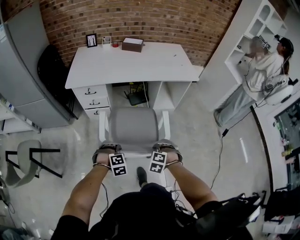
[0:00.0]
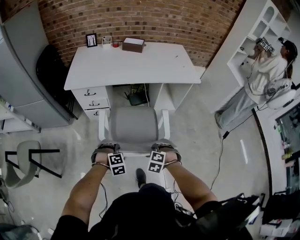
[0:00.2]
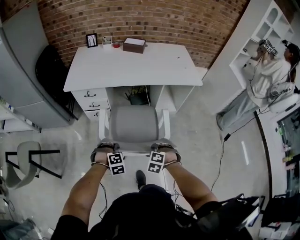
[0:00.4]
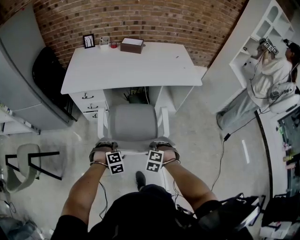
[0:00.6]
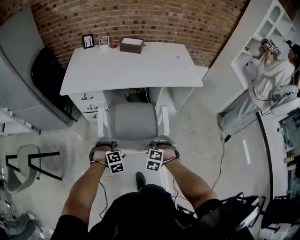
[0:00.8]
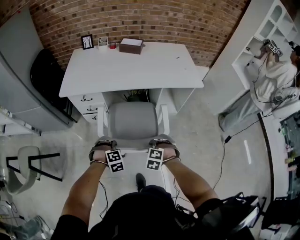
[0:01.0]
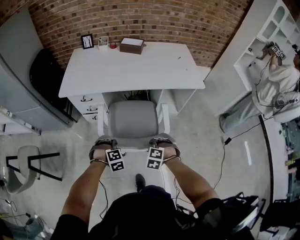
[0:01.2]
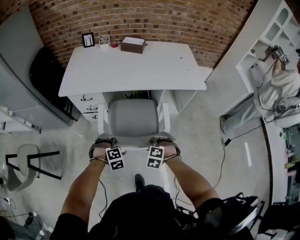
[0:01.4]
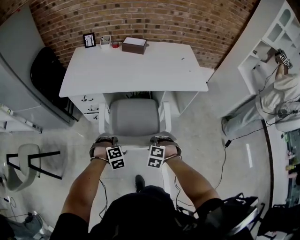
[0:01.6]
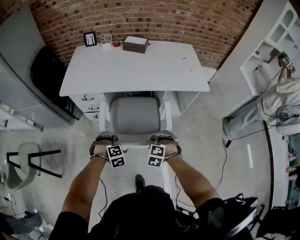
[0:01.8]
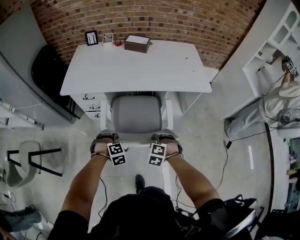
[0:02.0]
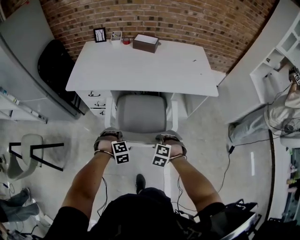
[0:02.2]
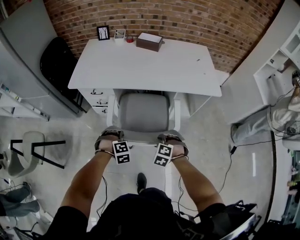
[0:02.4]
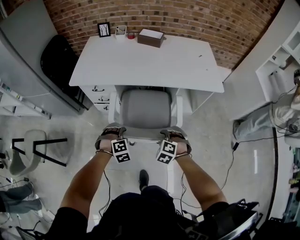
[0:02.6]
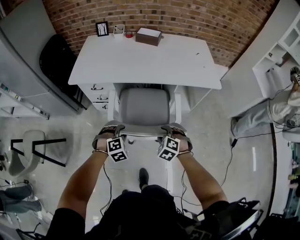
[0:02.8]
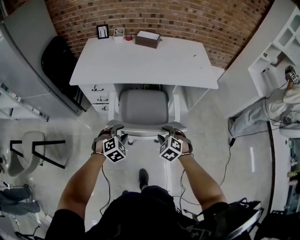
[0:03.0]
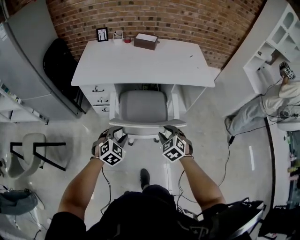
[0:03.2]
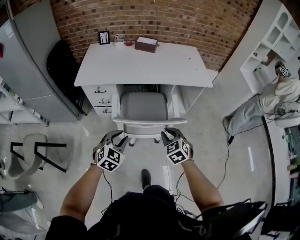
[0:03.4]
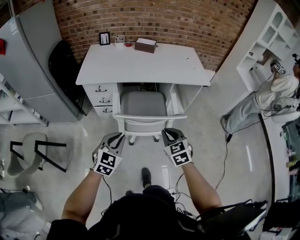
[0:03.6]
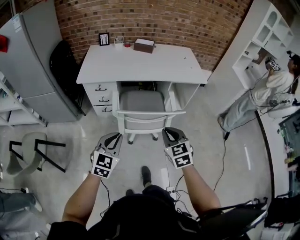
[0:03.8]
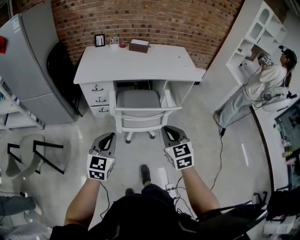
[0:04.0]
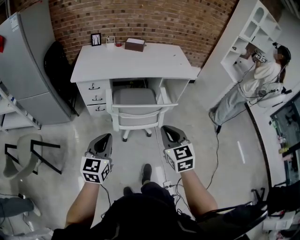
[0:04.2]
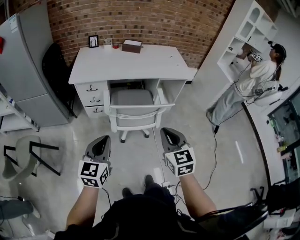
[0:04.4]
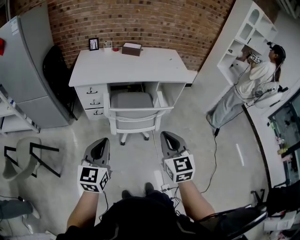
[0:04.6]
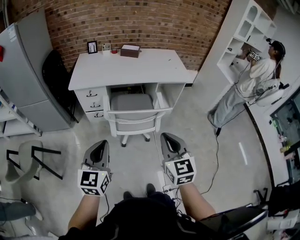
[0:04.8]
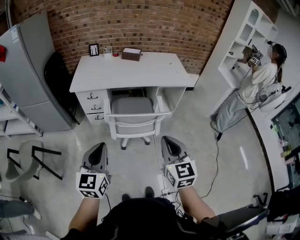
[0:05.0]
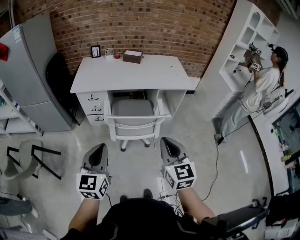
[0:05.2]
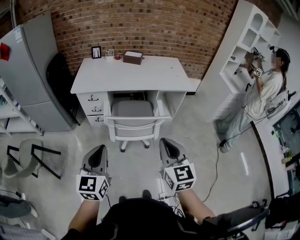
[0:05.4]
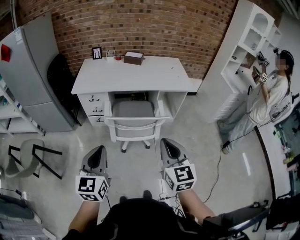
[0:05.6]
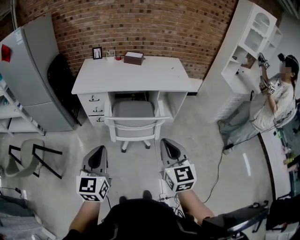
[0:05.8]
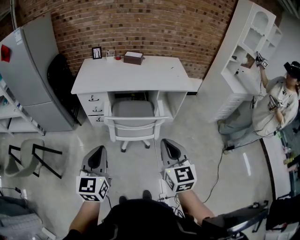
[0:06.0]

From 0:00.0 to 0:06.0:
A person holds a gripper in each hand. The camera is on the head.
From 0:00.0 to 0:01.6: The two grippers go approximately 20 cm forward.
From 0:01.6 to 0:03.0: The two grippers go roughly 5 cm upward. The left gripper changes its angle by about 30 degrees, and opens up, while the right gripper turns by roughly 20 degrees.
From 0:03.0 to 0:04.4: Both grippers move backward and upward, approximately 35 cm. The right gripper points its fingers some 40 degrees further upward, and closes its fingers. Meanwhile the left gripper points its fingers about 40 degrees further upward, and closes.
From 0:04.4 to 0:06.0: The right gripper heads to the right and upward, covering some 10 cm, while the left gripper moves upward and to the right, some 10 cm.

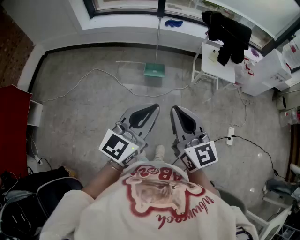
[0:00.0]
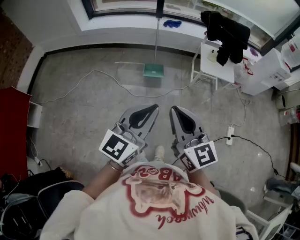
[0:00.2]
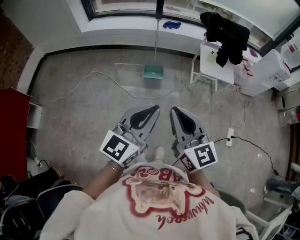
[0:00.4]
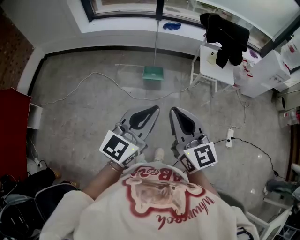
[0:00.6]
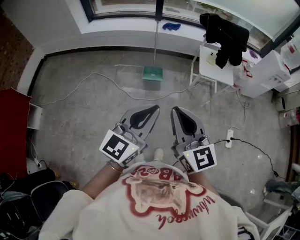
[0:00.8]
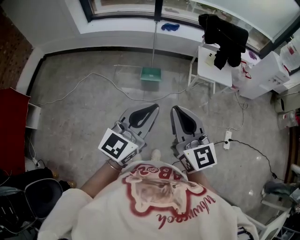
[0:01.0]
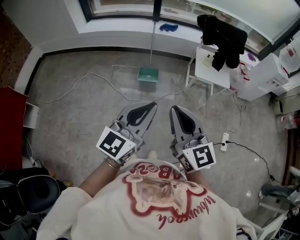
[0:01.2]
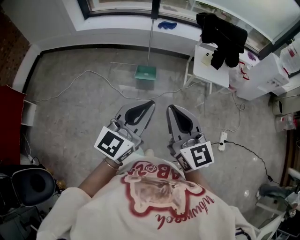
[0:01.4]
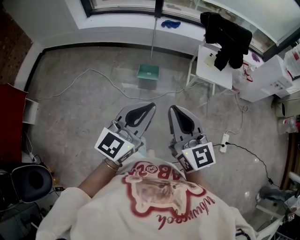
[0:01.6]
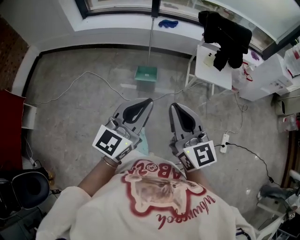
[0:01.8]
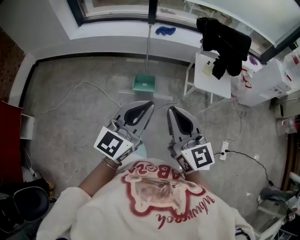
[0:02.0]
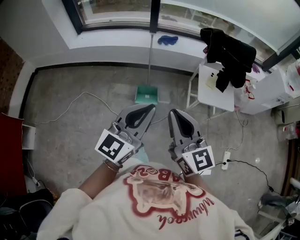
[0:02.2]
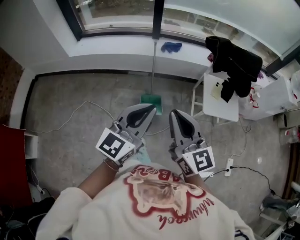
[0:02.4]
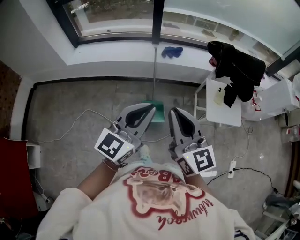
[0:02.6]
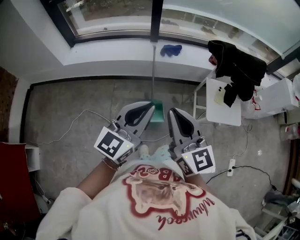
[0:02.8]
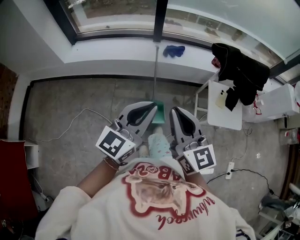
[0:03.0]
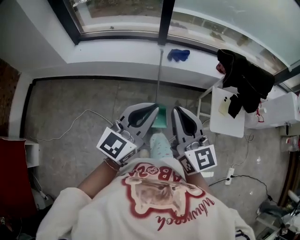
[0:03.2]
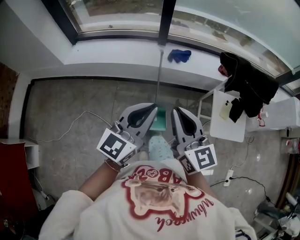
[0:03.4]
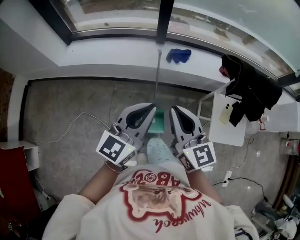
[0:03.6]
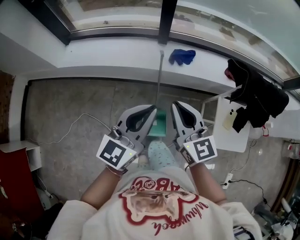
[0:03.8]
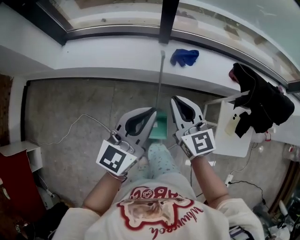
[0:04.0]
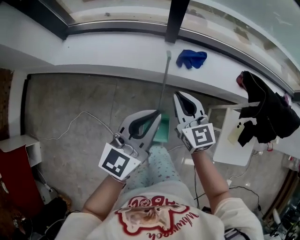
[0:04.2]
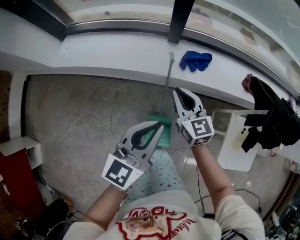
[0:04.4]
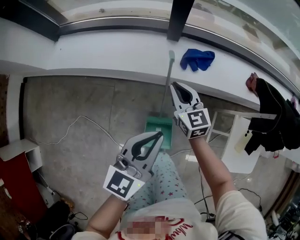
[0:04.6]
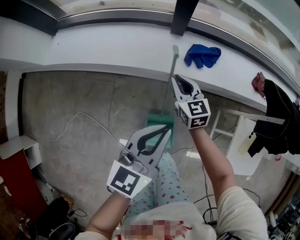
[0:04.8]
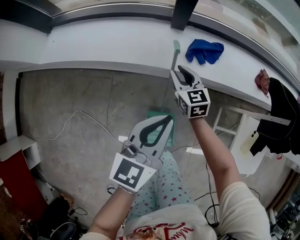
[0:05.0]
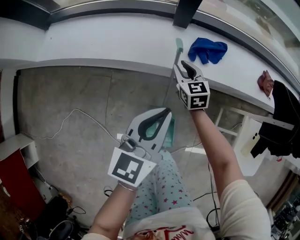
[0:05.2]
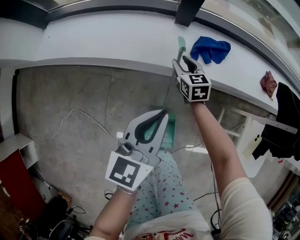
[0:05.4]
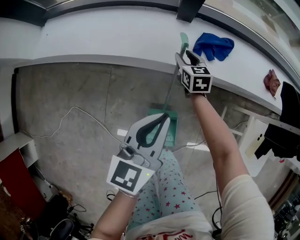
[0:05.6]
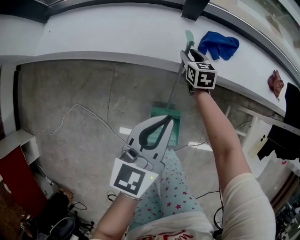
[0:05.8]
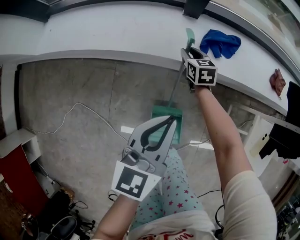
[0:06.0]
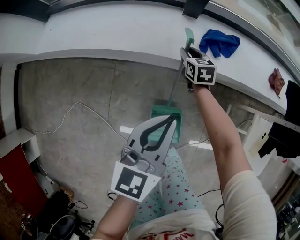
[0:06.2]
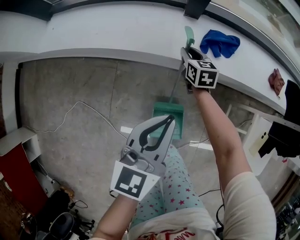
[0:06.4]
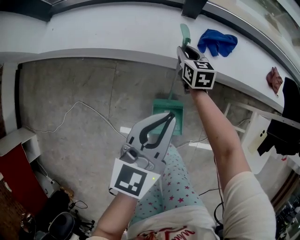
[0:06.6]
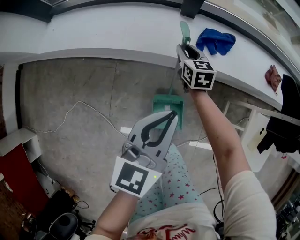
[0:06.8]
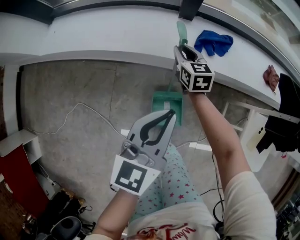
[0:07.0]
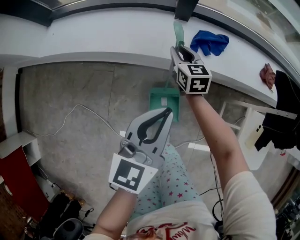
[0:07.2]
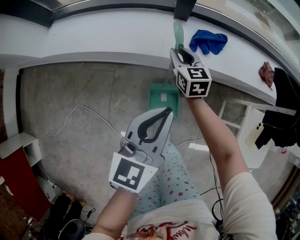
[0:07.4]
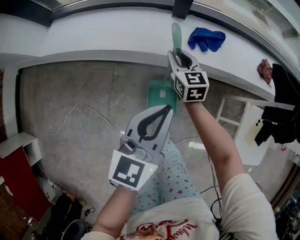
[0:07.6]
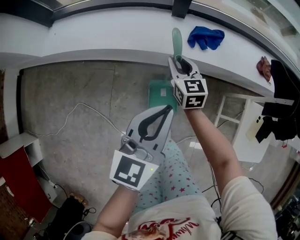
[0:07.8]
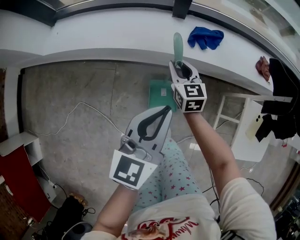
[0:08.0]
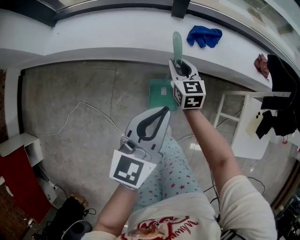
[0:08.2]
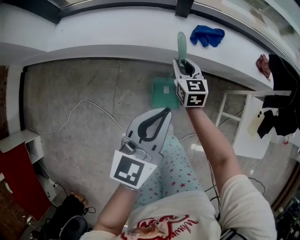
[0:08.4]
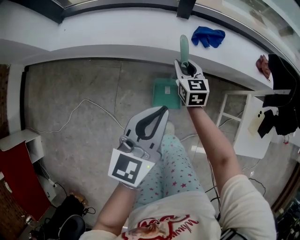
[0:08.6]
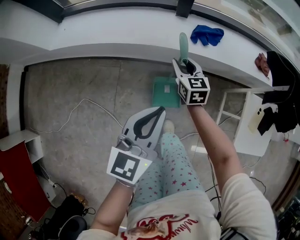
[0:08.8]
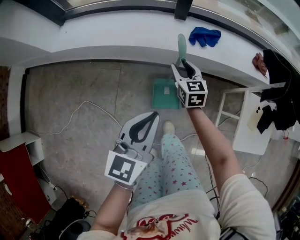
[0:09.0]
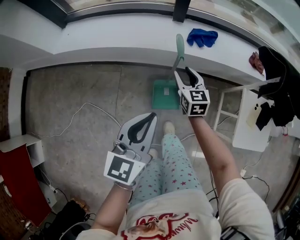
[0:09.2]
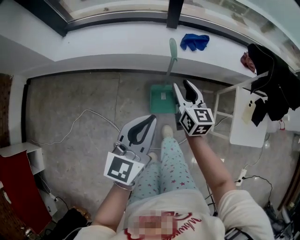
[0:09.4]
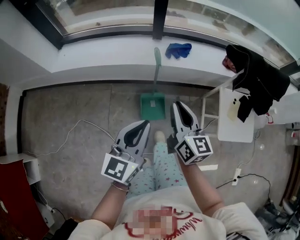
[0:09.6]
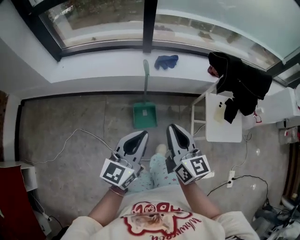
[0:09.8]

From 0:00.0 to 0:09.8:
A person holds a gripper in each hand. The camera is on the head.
From 0:00.0 to 0:01.4: The right gripper shifts some 5 cm to the right. The left gripper travels to the right and forward by some 10 cm.
From 0:01.4 to 0:02.8: Both grippers are carried forward, approximately 50 cm.
From 0:02.8 to 0:04.2: The left gripper is displaced forward by approximately 35 cm. The right gripper shifts roughly 50 cm forward and downward.
From 0:04.2 to 0:05.6: The left gripper moves downward, roughly 20 cm; the right gripper is displaced downward and forward by about 40 cm, changes its angle by approximately 30 degrees, and opens.
From 0:05.6 to 0:07.0: The right gripper goes roughly 10 cm upward, while the left gripper changes place by about 5 cm.
From 0:07.0 to 0:08.4: The left gripper shifts some 10 cm backward; the right gripper shifts roughly 15 cm backward and upward.
From 0:08.4 to 0:09.8: The right gripper shifts about 50 cm backward and upward, and rotates about 20 degrees. The left gripper is displaced backward and upward by about 25 cm.

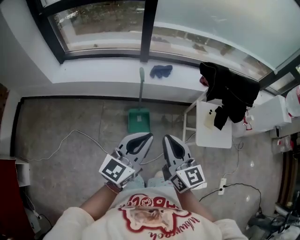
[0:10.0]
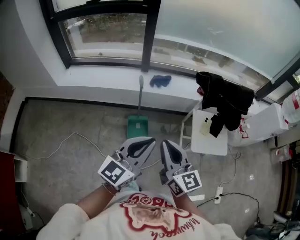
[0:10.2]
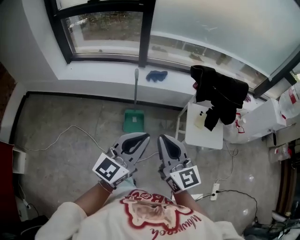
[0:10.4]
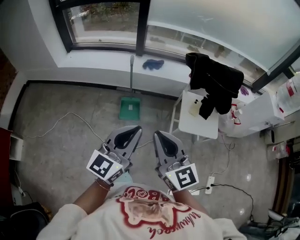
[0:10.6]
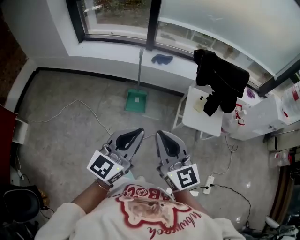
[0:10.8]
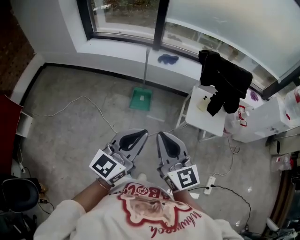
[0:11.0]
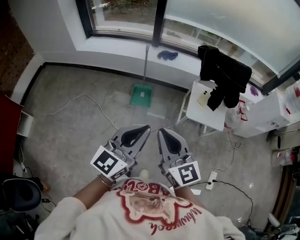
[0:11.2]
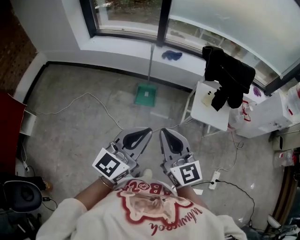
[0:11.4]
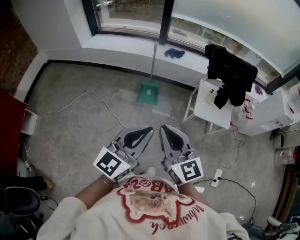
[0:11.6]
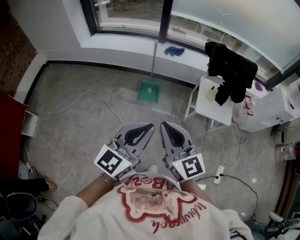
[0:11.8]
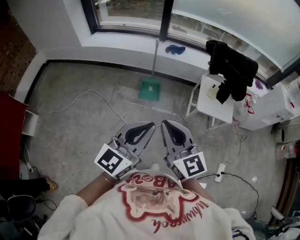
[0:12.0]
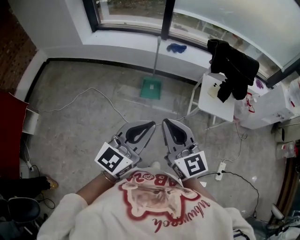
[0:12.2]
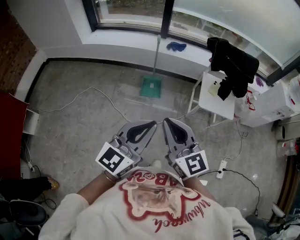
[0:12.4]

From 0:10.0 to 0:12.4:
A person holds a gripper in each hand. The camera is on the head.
From 0:10.0 to 0:11.2: The grippers both shift backward and to the right by roughly 35 cm.
From 0:11.2 to 0:12.4: The two grippers go some 10 cm to the left.

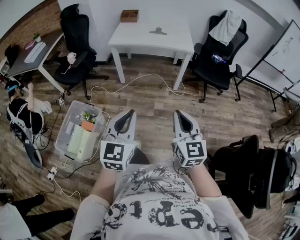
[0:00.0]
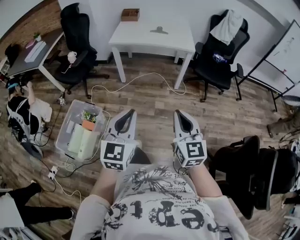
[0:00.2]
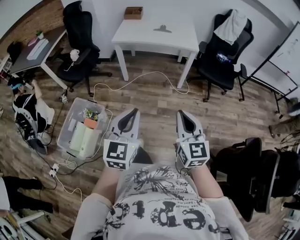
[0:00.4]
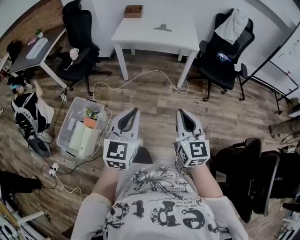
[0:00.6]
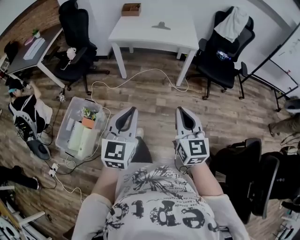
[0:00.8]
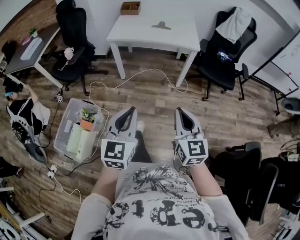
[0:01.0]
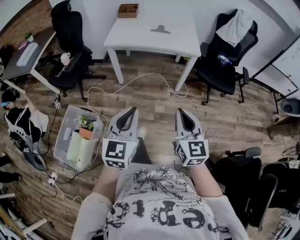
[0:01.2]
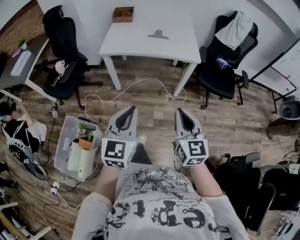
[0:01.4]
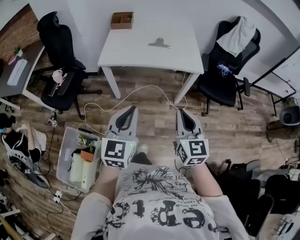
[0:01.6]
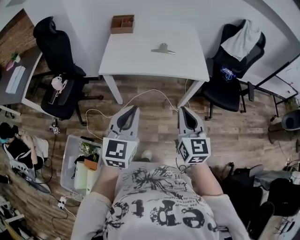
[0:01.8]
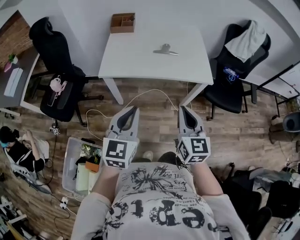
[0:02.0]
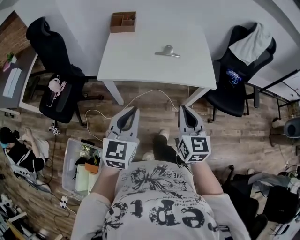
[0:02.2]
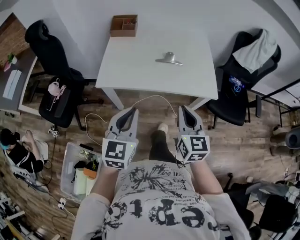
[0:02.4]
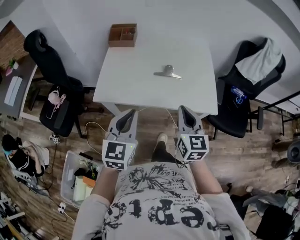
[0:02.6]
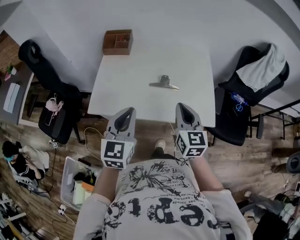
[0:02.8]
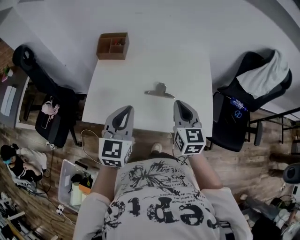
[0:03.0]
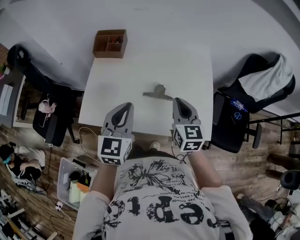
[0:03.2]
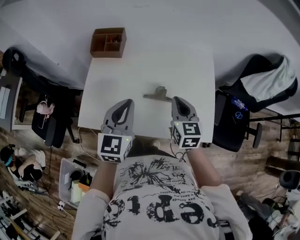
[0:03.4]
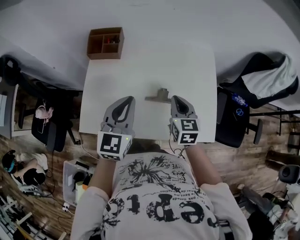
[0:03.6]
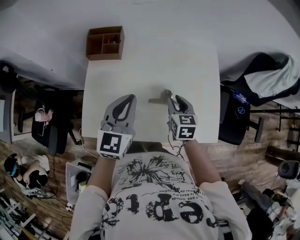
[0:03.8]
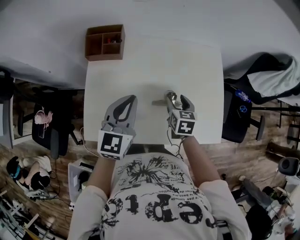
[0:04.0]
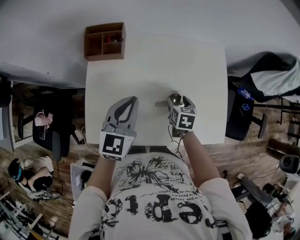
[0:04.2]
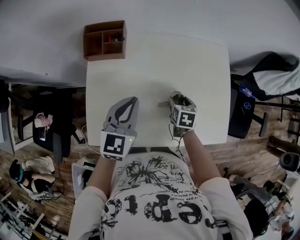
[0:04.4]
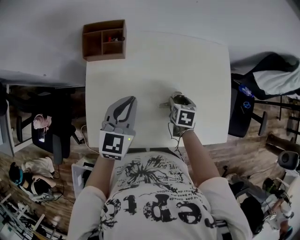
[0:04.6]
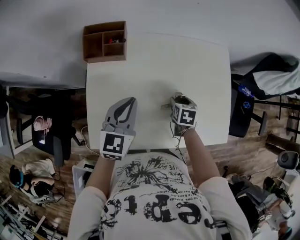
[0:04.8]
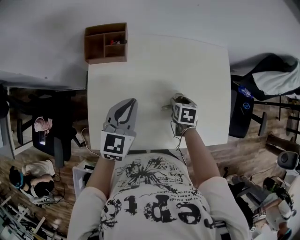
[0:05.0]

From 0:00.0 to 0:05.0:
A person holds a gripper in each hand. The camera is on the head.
From 0:00.0 to 0:01.6: The grippers both shift forward by some 35 cm.
From 0:01.6 to 0:03.4: Both grippers are carried forward, roughly 60 cm.
From 0:03.4 to 0:05.0: The left gripper travels forward, to the left and downward by roughly 20 cm; the right gripper moves downward, some 20 cm, points its fingers approximately 40 degrees further downward, and opens.
